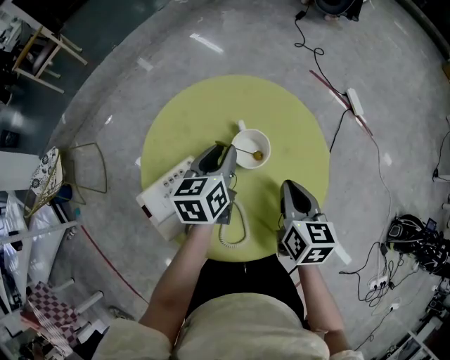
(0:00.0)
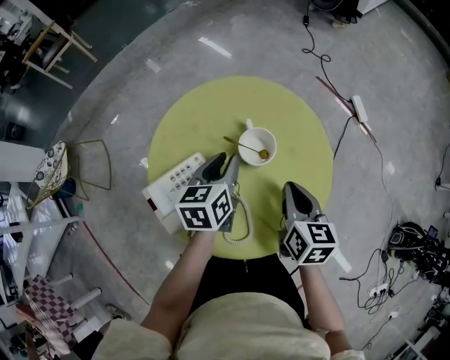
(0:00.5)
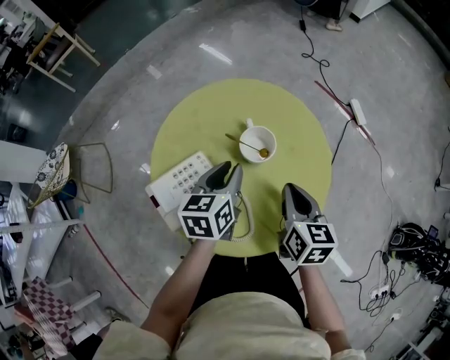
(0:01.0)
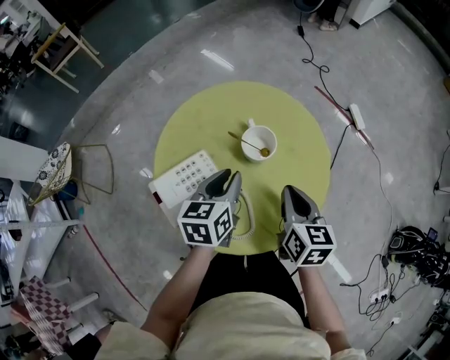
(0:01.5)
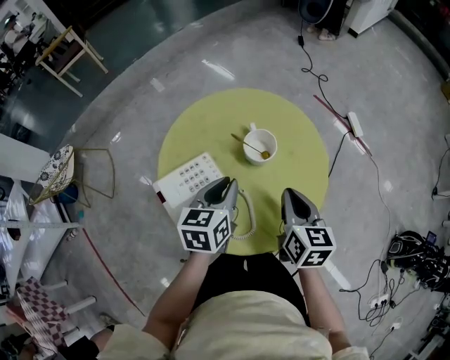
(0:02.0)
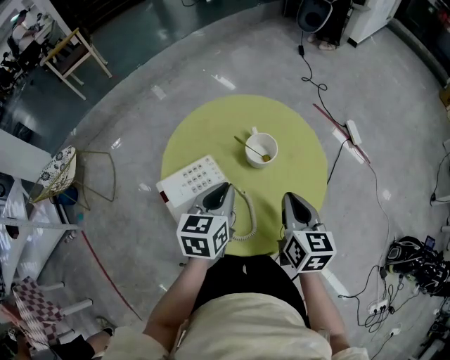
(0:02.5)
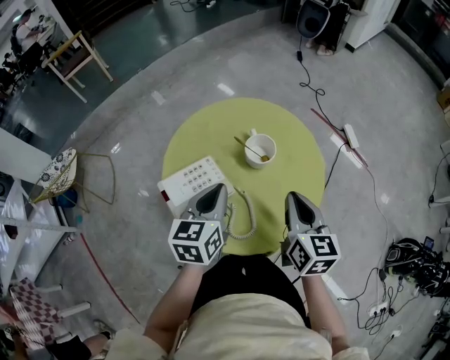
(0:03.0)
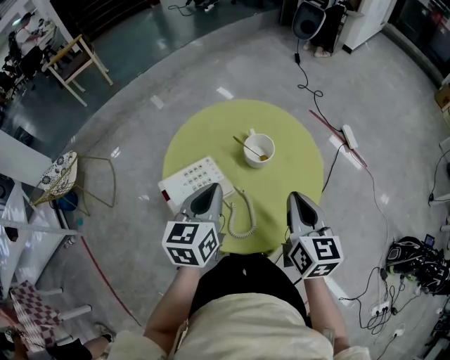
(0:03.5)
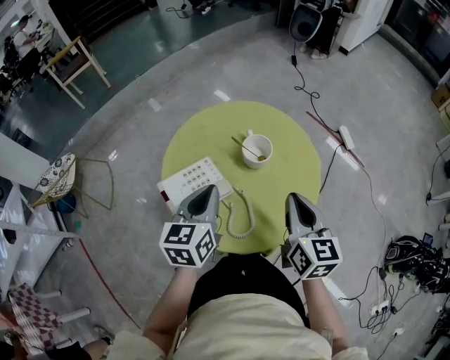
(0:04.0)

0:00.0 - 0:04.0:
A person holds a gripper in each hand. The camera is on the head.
0:00.0 - 0:02.0: The left gripper shifts roughly 10 cm backward; the right gripper moves backward, roughly 5 cm.
0:02.0 - 0:04.0: The two grippers go some 5 cm upward.

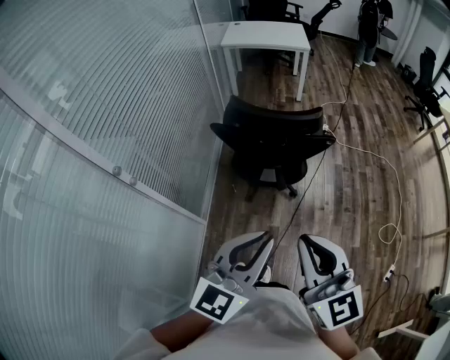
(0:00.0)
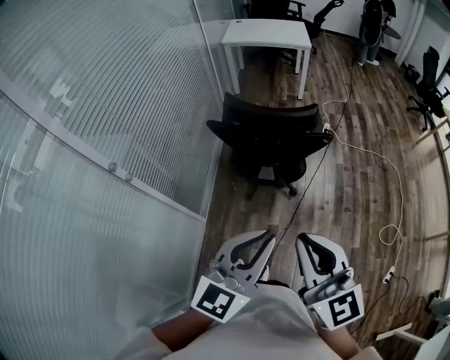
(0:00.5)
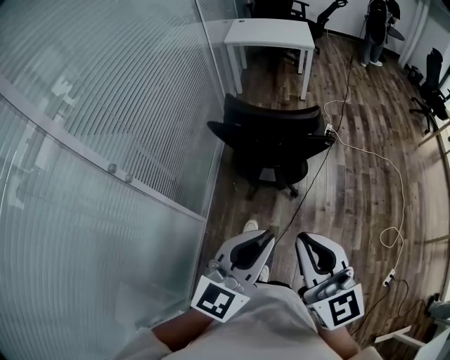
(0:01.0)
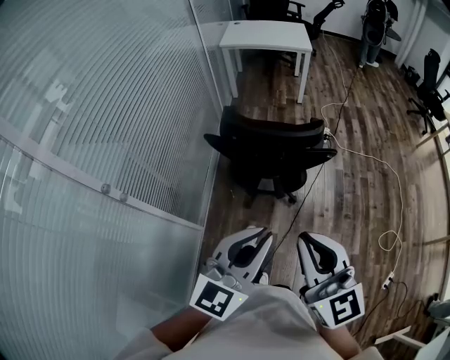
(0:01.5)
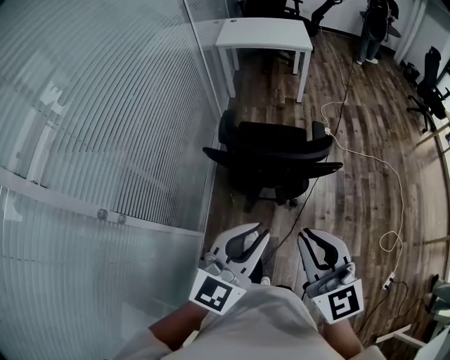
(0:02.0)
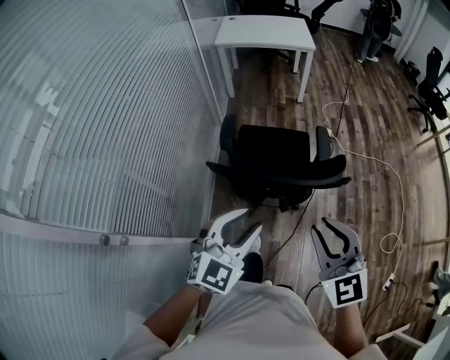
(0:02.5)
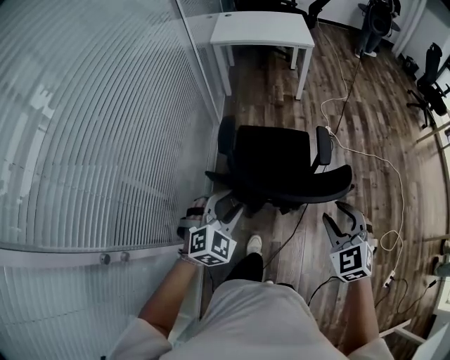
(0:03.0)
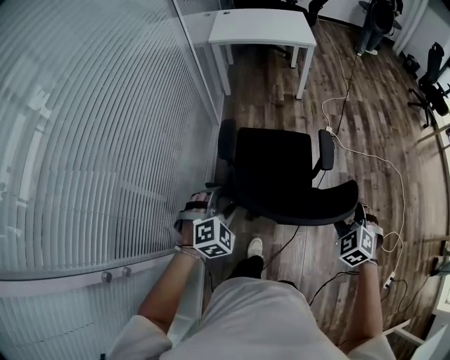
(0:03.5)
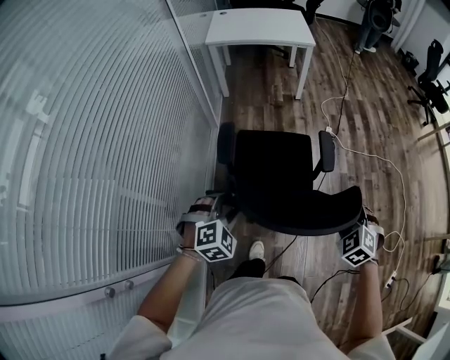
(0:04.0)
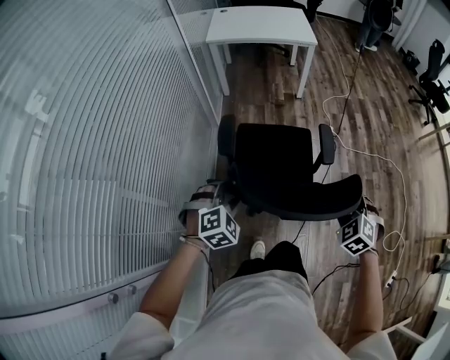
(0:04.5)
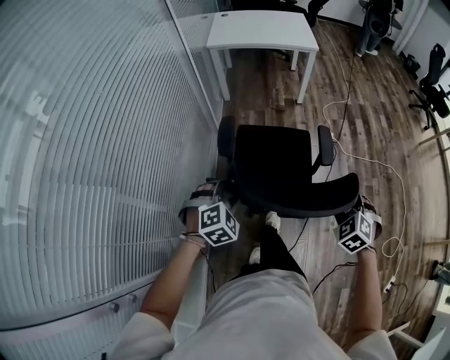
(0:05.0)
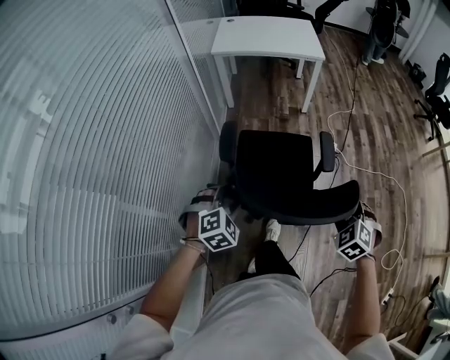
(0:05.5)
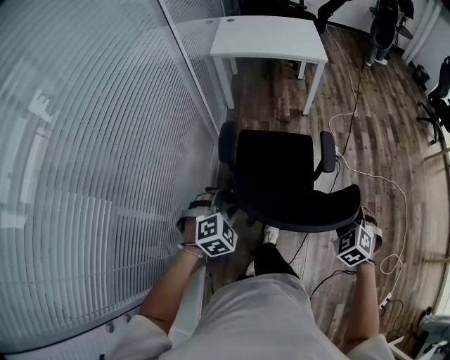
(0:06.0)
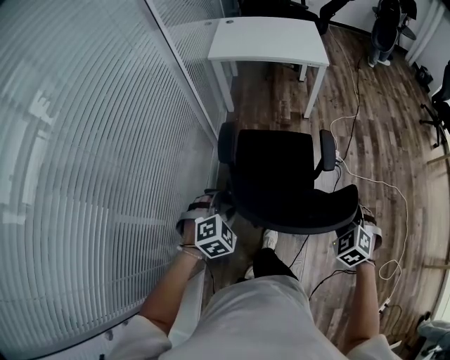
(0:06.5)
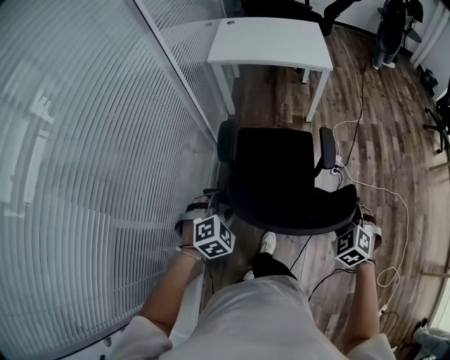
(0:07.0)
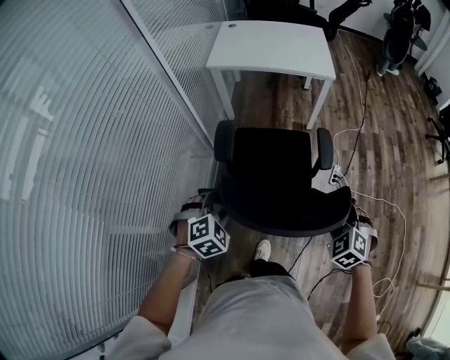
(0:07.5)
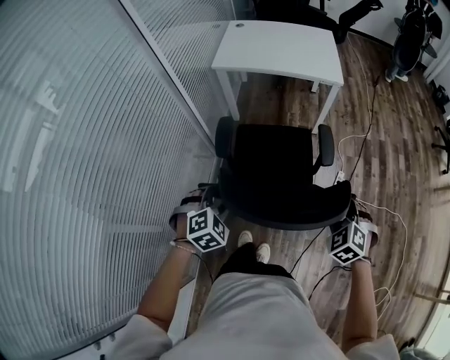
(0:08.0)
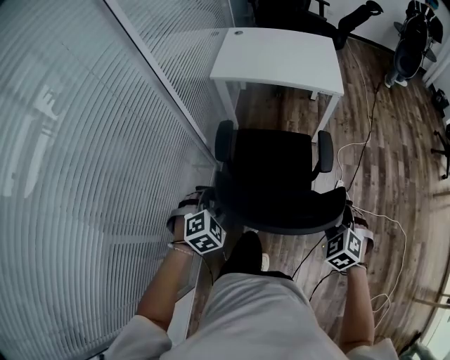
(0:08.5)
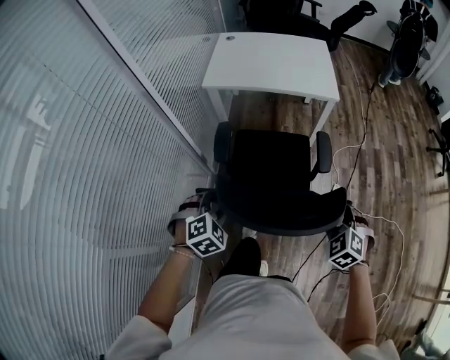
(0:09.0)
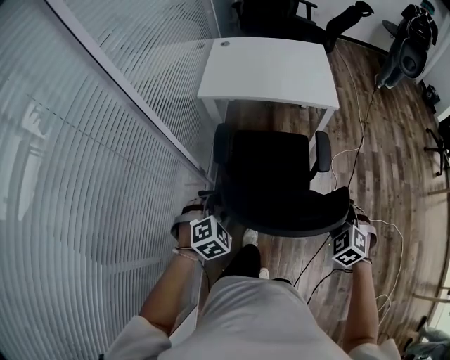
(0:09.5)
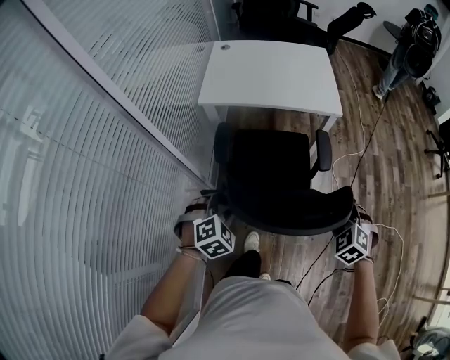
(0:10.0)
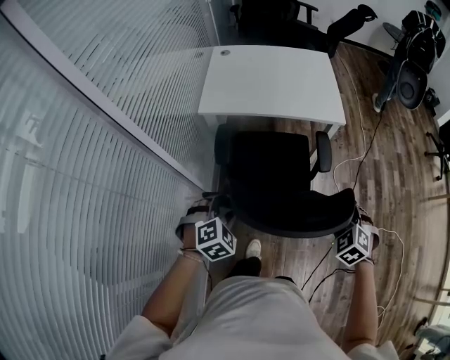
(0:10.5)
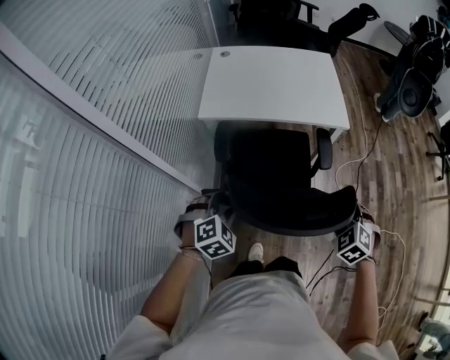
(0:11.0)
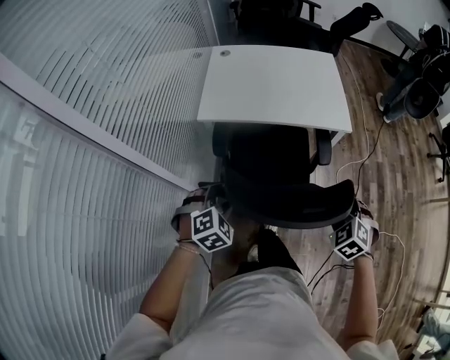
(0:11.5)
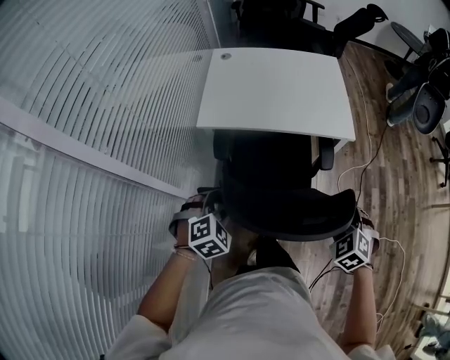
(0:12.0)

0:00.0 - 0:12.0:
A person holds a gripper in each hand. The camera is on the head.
0:00.0 - 0:02.0: Both grippers travel together forward, approximately 15 cm.
0:02.0 - 0:04.0: The right gripper is displaced forward and downward by some 35 cm, tilts its fingers some 50 degrees downward, and opens its fingers. The left gripper travels forward, downward and to the left by approximately 35 cm, tips its fingers downward by about 40 degrees, and opens up.
0:04.0 - 0:06.0: The two grippers go about 15 cm forward.
0:06.0 - 0:08.0: Both grippers travel together forward, roughly 25 cm.
0:08.0 - 0:10.0: The two grippers go roughly 20 cm forward.
0:10.0 - 0:12.0: Both grippers move forward, approximately 20 cm.

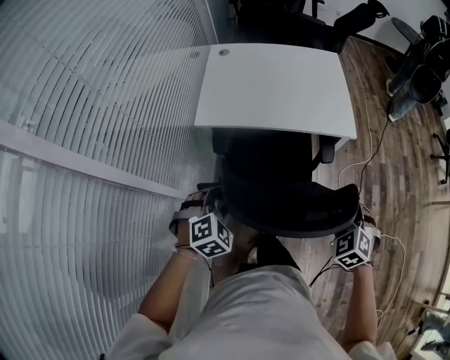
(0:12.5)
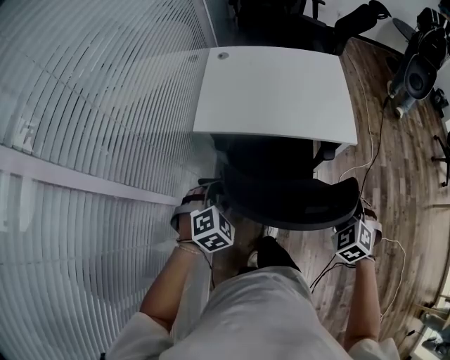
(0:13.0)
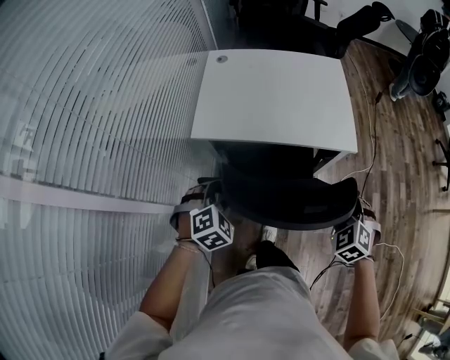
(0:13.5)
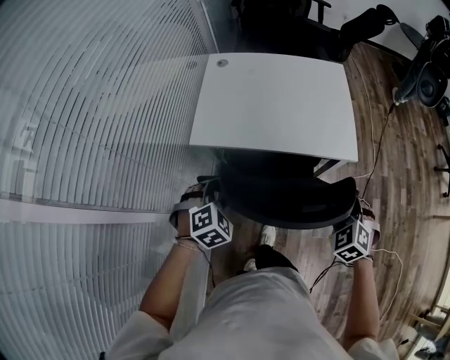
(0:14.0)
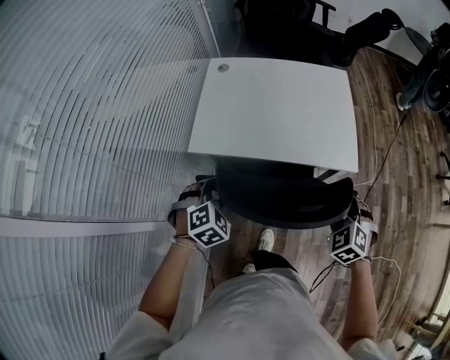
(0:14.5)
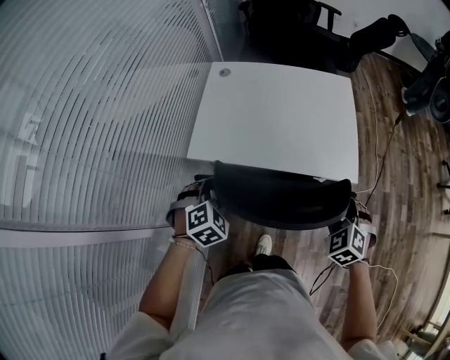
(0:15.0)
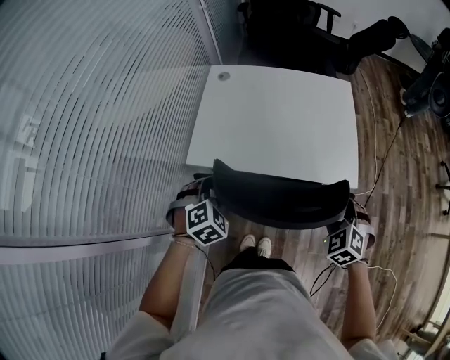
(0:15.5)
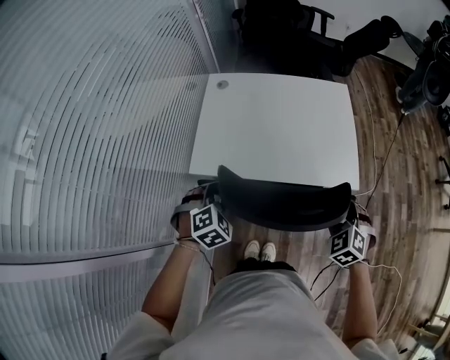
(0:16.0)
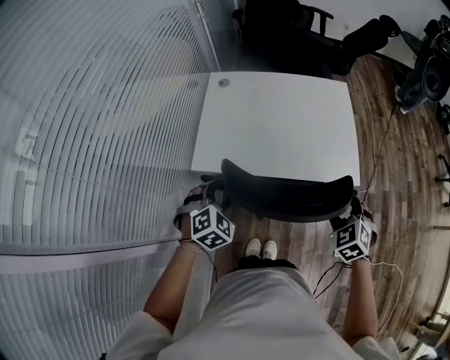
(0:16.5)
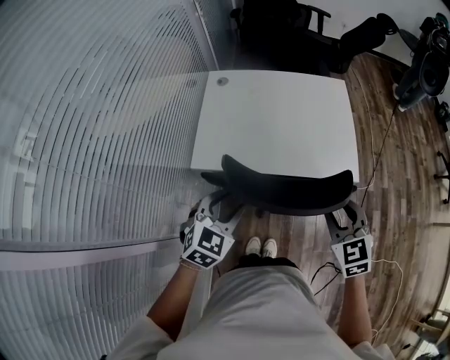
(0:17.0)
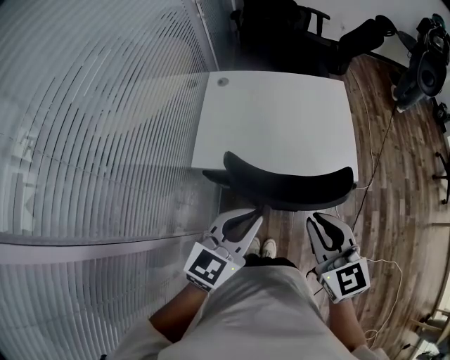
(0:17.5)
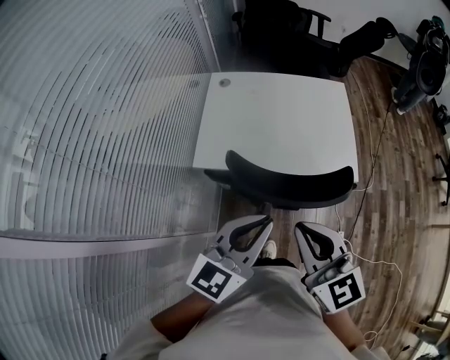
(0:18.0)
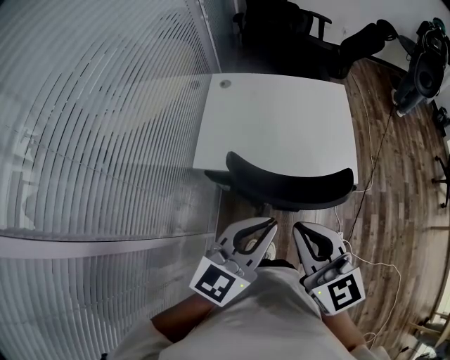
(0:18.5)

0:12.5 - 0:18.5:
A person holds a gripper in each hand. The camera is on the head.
0:12.5 - 0:14.5: Both grippers travel together forward, about 20 cm.
0:14.5 - 0:16.5: Both grippers travel together forward, some 5 cm.
0:16.5 - 0:18.5: The right gripper heads upward, to the left and backward, covering approximately 25 cm, angles its fingers upward, by about 40 degrees, and closes up, while the left gripper heads upward, to the right and backward, covering approximately 25 cm, tips its fingers upward by roughly 50 degrees, and closes up.

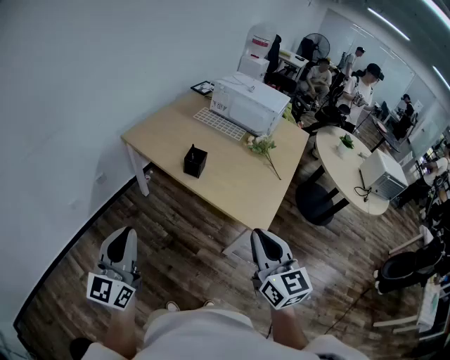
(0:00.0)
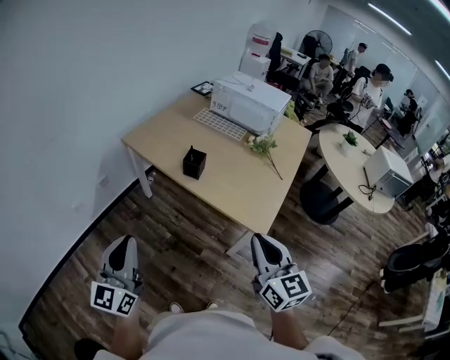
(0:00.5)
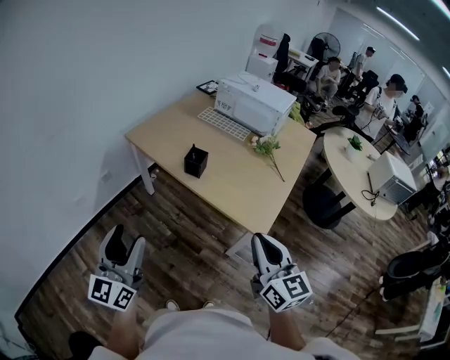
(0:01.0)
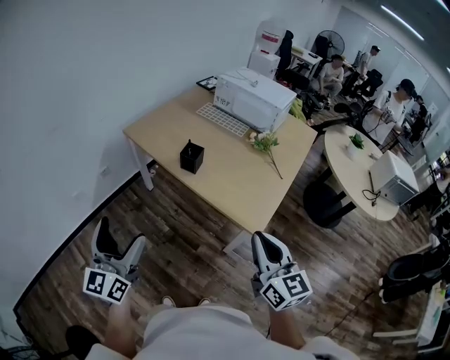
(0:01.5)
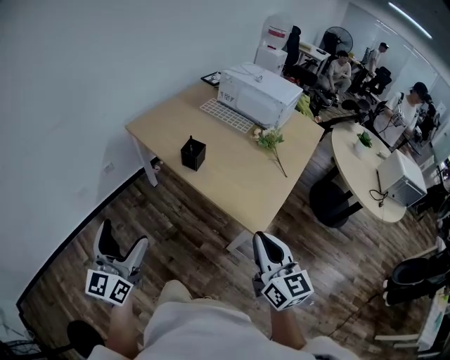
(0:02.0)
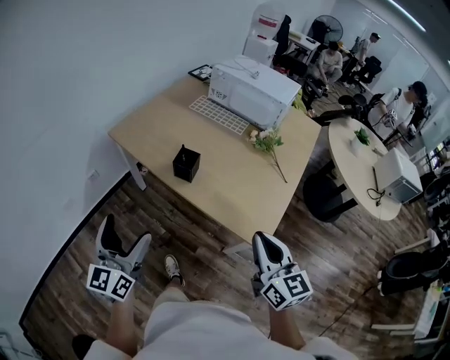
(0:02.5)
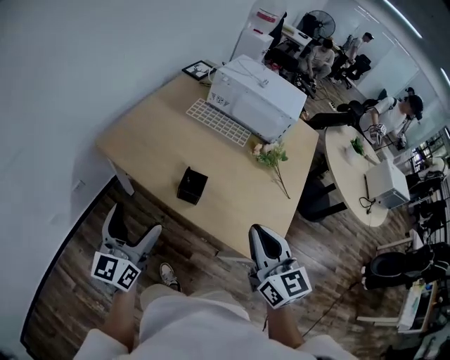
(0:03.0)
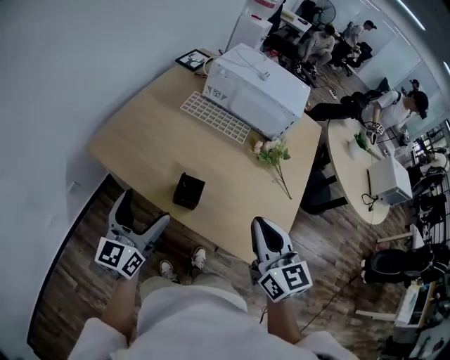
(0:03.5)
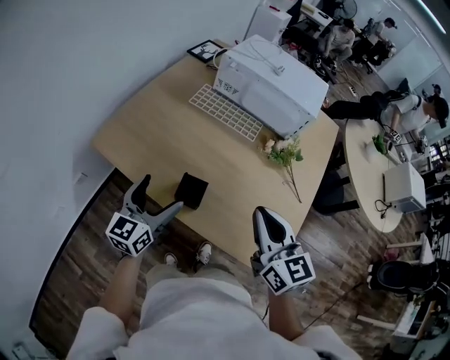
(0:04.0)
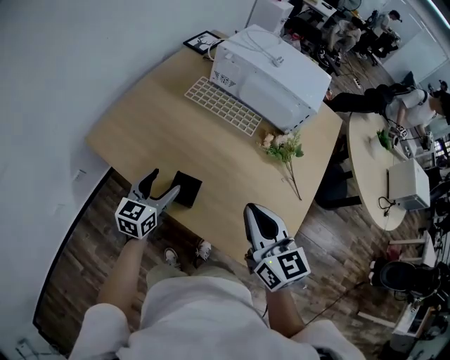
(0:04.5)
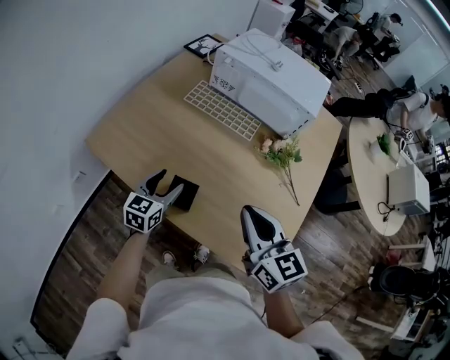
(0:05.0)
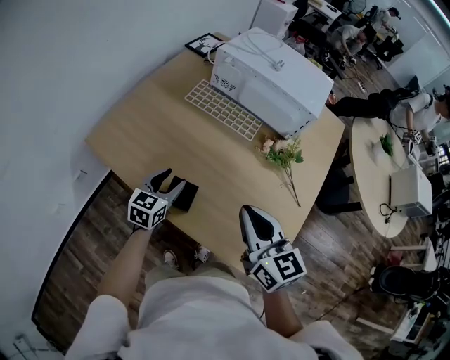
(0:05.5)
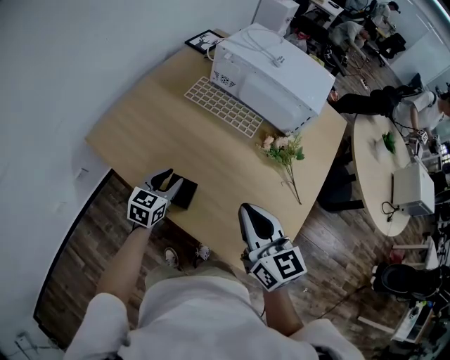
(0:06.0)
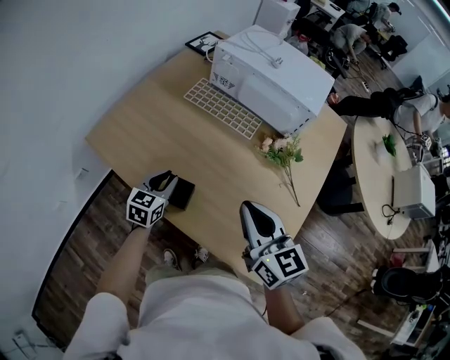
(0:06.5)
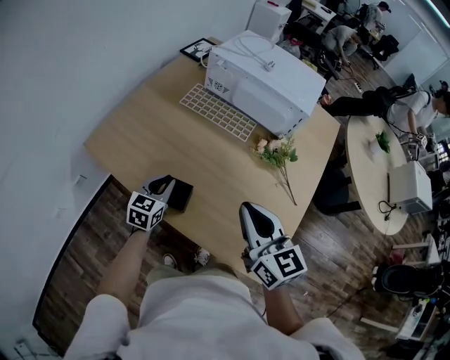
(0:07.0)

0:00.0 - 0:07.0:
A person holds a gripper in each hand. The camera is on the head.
0:00.0 - 0:02.0: Both grippers travel together to the right, approximately 10 cm. The left gripper opens up.
0:02.0 - 0:03.5: Both grippers travel together forward, about 35 cm. The left gripper rotates about 20 degrees.
0:03.5 - 0:05.0: The left gripper is displaced downward, forward and to the right by approximately 20 cm, swivels approximately 30 degrees, and closes up. The right gripper travels forward by some 10 cm.
0:05.0 - 0:07.0: The left gripper closes its fingers.
